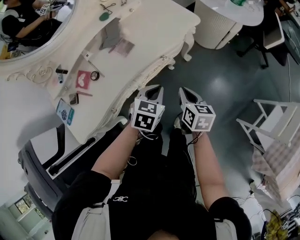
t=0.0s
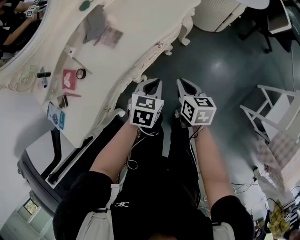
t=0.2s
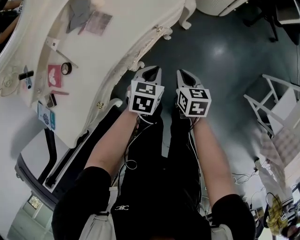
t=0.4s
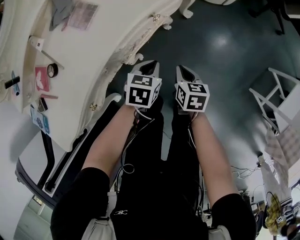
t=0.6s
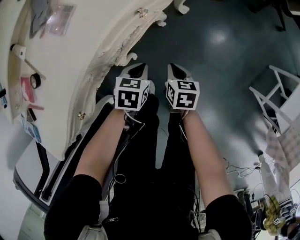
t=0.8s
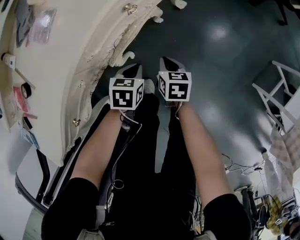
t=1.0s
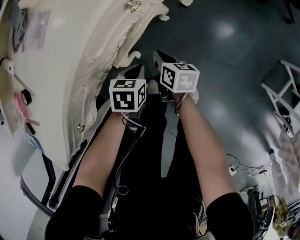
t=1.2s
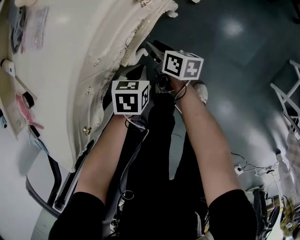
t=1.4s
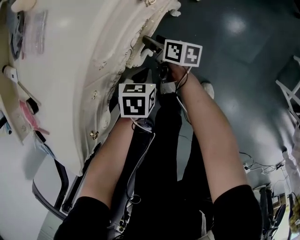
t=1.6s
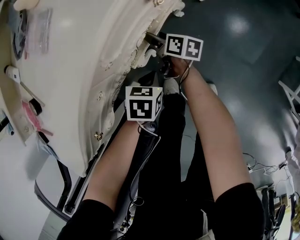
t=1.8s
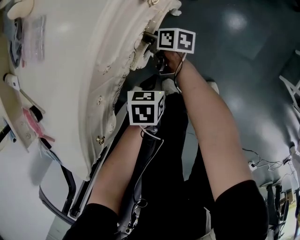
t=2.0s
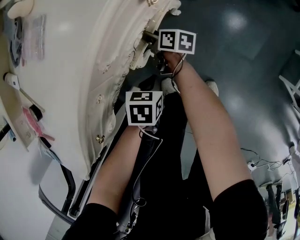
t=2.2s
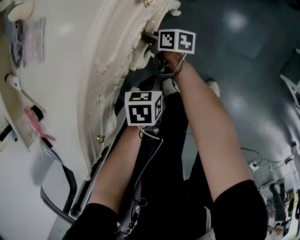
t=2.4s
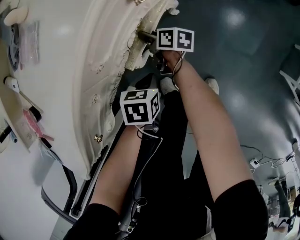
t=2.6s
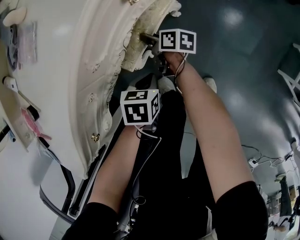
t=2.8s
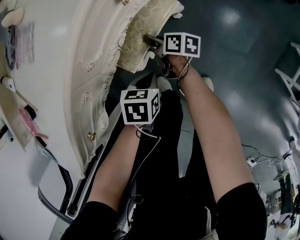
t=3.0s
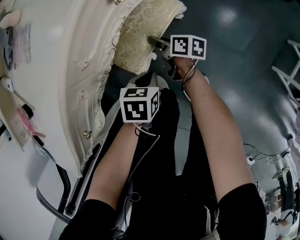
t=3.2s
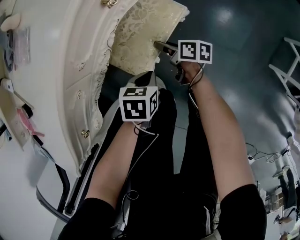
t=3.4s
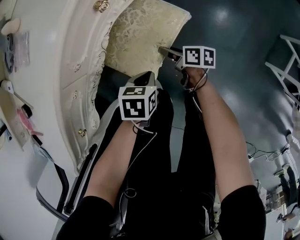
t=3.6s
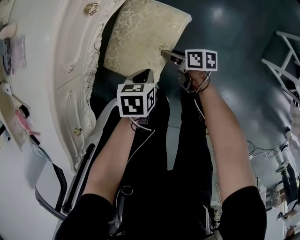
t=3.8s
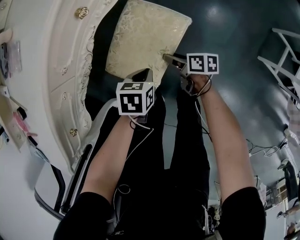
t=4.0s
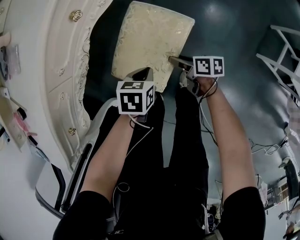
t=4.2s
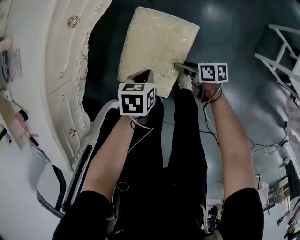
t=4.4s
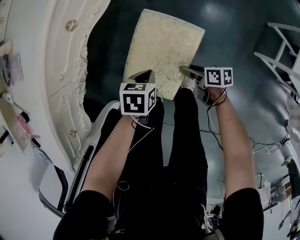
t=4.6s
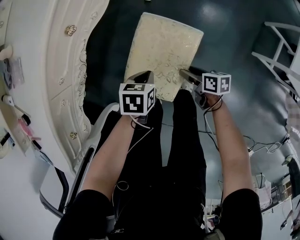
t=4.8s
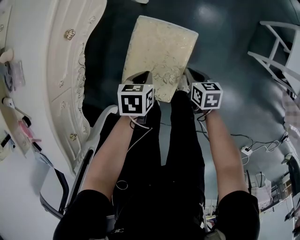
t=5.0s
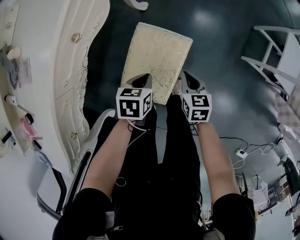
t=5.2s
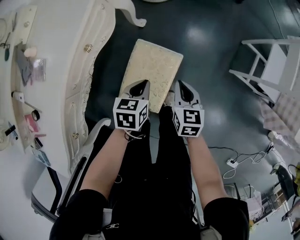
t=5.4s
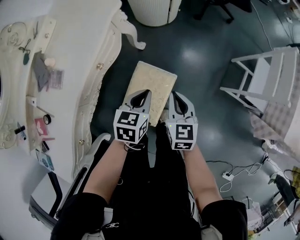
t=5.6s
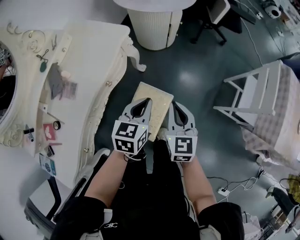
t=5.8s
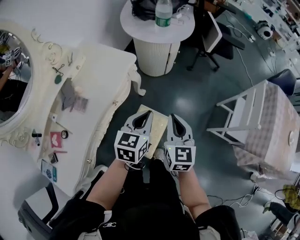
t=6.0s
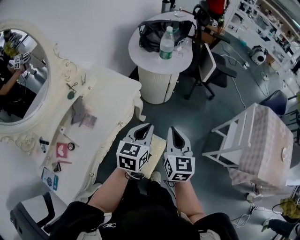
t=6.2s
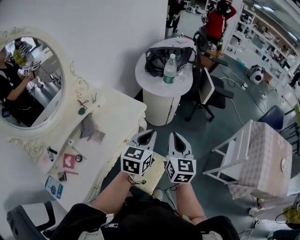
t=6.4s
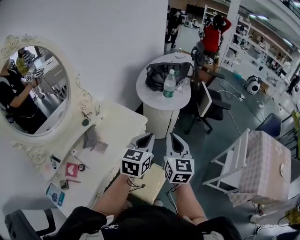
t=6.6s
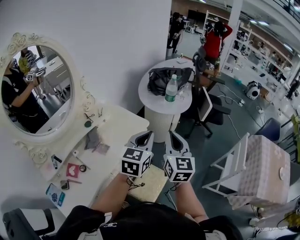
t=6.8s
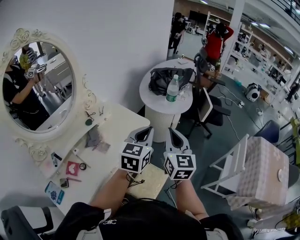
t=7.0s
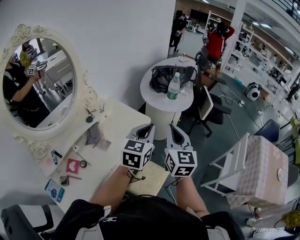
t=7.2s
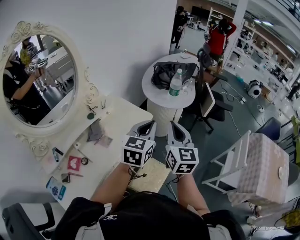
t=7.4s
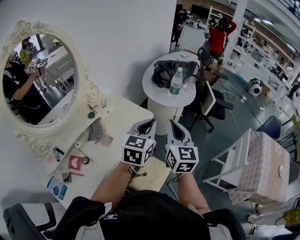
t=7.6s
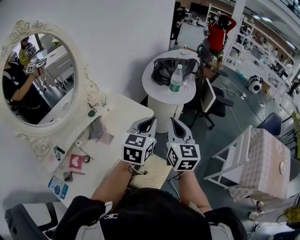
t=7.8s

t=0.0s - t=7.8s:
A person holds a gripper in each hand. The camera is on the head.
t=0.0s - t=1.6s: The left gripper travels downward by roughly 35 cm, and turns by roughly 20 degrees. Meanwhile the right gripper is displaced downward and to the left by approximately 40 cm, rotates about 40 degrees, and opens up.
t=1.6s - t=3.2s: Both grippers move to the right, some 5 cm.
t=3.2s - t=4.6s: The right gripper heads to the right and backward, covering some 30 cm, while the left gripper heads to the right, covering about 10 cm.
t=4.6s - t=6.2s: The grippers both shift upward by about 50 cm. The right gripper changes its angle by about 80 degrees, and closes, while the left gripper points its fingers some 50 degrees further upward.
t=6.2s - t=7.8s: Both grippers move upward and to the left, roughly 15 cm.

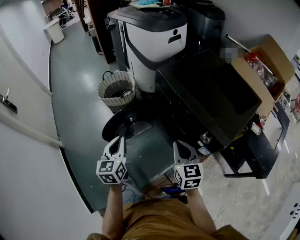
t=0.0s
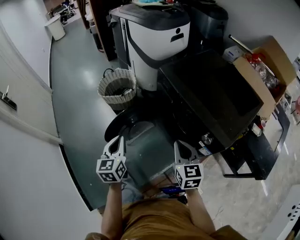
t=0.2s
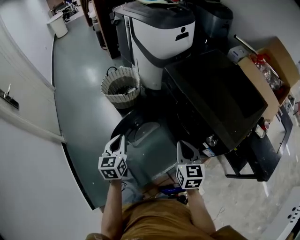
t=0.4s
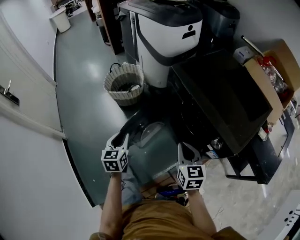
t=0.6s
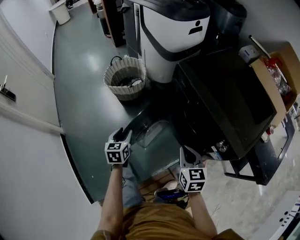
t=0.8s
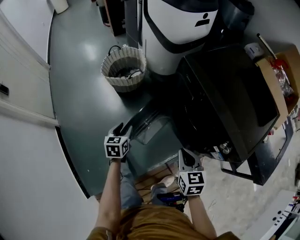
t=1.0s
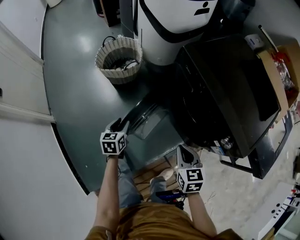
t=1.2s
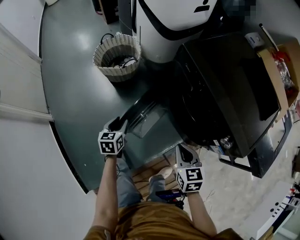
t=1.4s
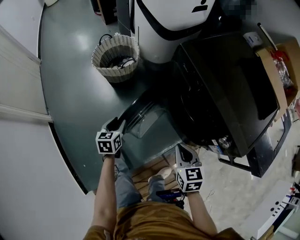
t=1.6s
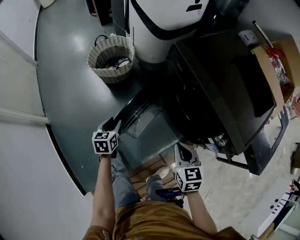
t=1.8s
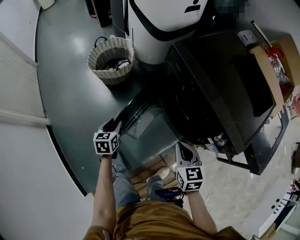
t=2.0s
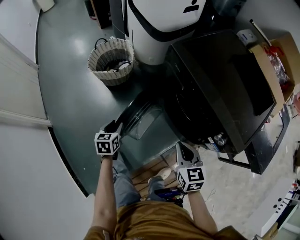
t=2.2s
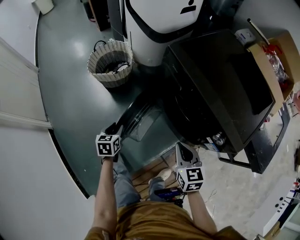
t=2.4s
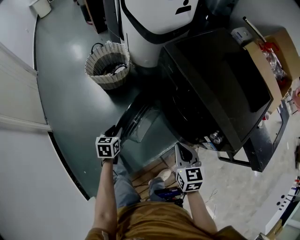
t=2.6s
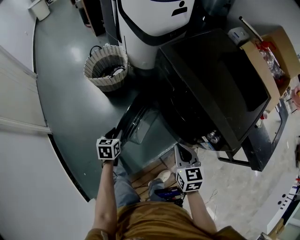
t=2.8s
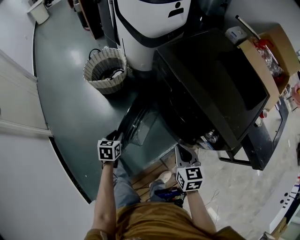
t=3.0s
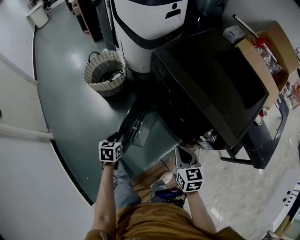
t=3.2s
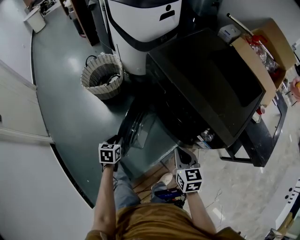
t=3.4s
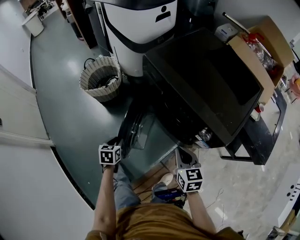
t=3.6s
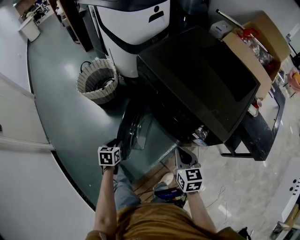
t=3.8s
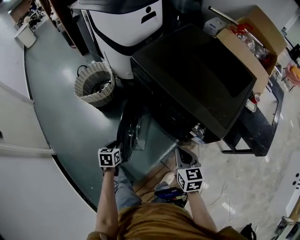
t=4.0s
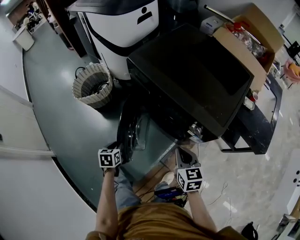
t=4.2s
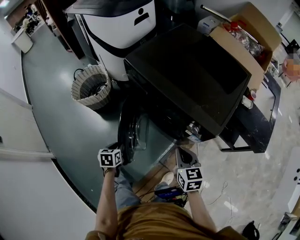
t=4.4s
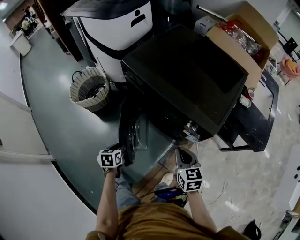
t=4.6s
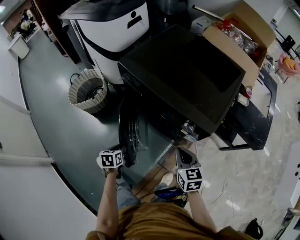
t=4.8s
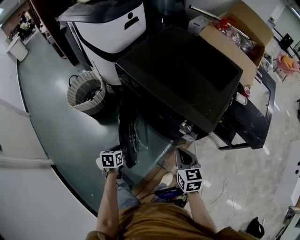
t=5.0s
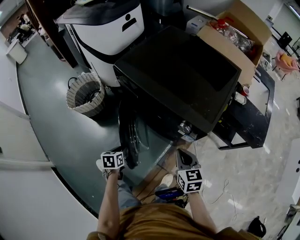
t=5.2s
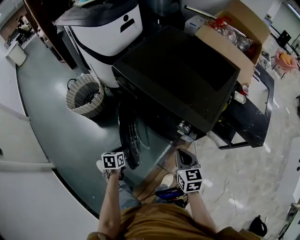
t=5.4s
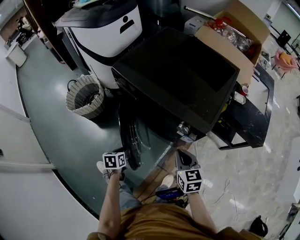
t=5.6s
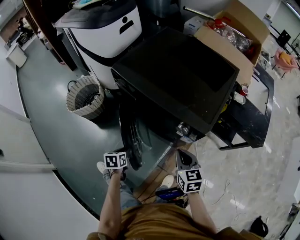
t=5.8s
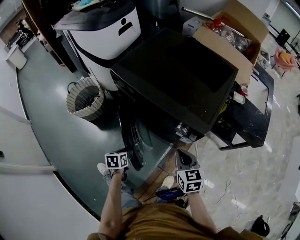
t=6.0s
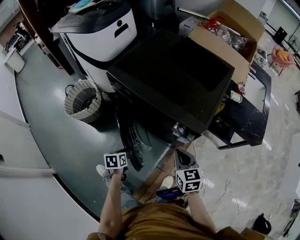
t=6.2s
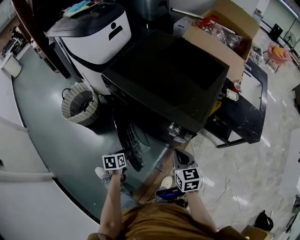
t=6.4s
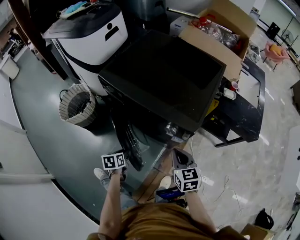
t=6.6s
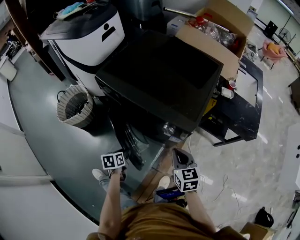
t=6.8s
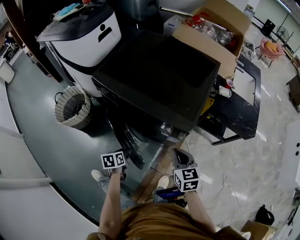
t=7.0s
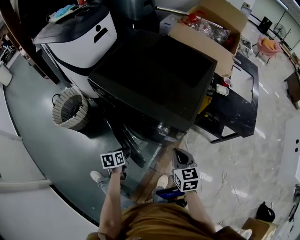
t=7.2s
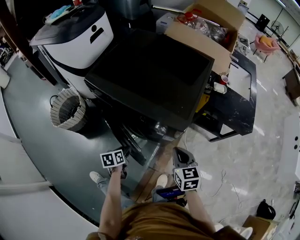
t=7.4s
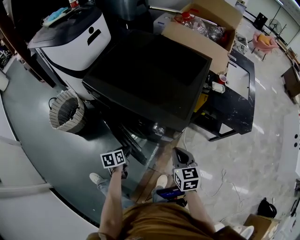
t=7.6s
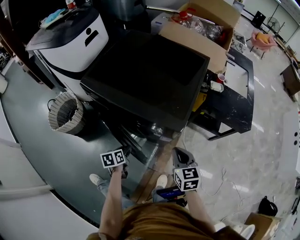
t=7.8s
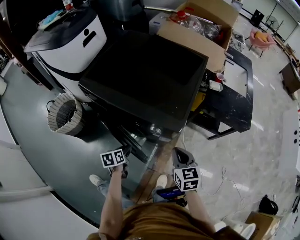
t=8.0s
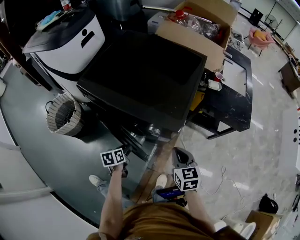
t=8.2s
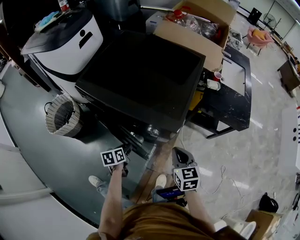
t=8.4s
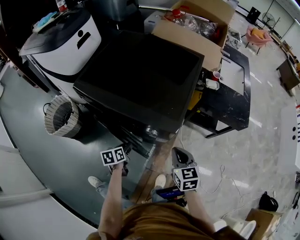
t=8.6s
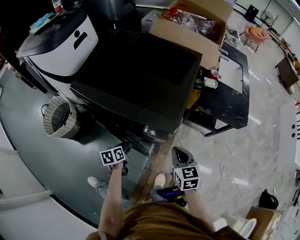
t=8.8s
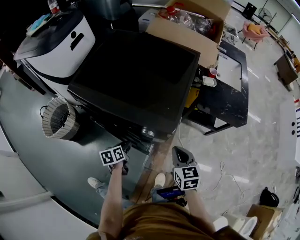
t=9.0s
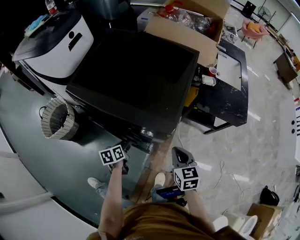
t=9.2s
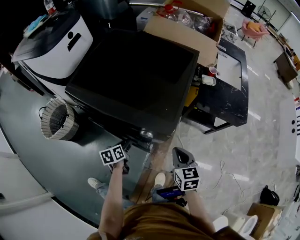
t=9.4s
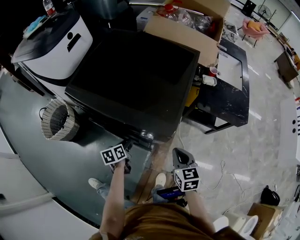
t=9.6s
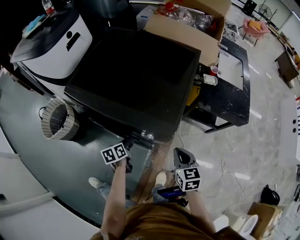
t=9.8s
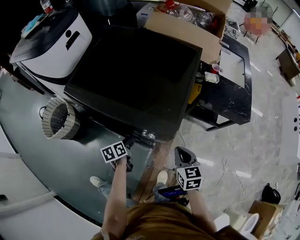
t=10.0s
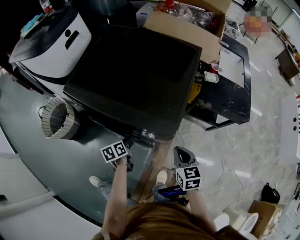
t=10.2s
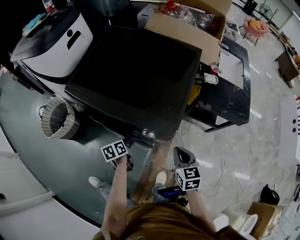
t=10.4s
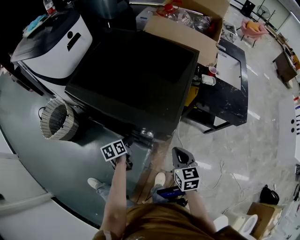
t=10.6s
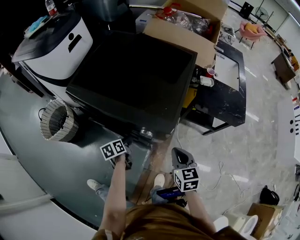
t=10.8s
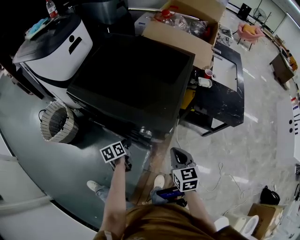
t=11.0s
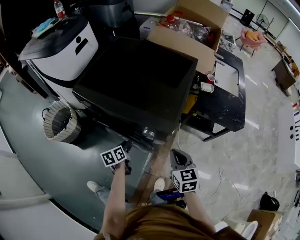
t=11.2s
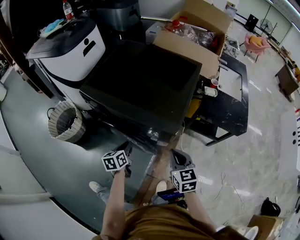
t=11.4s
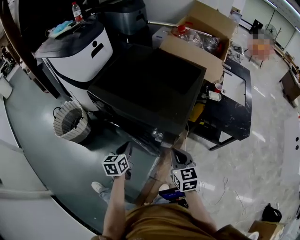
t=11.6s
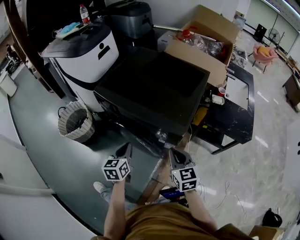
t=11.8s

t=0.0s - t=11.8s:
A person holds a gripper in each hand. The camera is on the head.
t=0.0s - t=1.4s: The right gripper travels downward and to the left by approximately 15 cm; the left gripper moves downward and forward, some 25 cm, turns by roughly 20 degrees, and opens its fingers.
t=1.4s - t=3.0s: Both grippers move to the right, approximately 5 cm.
t=3.0s - t=4.4s: The two grippers go approximately 10 cm to the right.
t=4.4s - t=6.0s: The left gripper shifts approximately 10 cm to the right.
t=6.0s - t=7.4s: The left gripper shifts approximately 10 cm to the right and forward. The right gripper moves to the right, some 5 cm.
t=7.4s - t=8.8s: The left gripper heads forward, covering roughly 5 cm.
t=8.8s - t=10.4s: The grippers make only small movements.
t=10.4s - t=11.8s: The right gripper shifts roughly 10 cm upward and to the left, while the left gripper heads upward and backward, covering some 20 cm, rotates about 40 degrees, and closes its fingers.

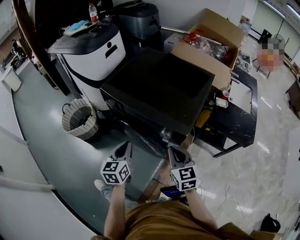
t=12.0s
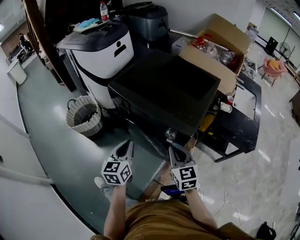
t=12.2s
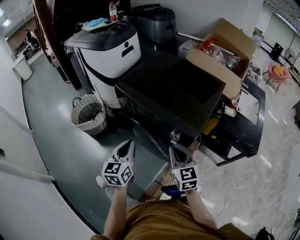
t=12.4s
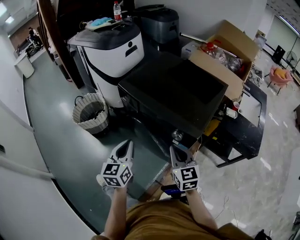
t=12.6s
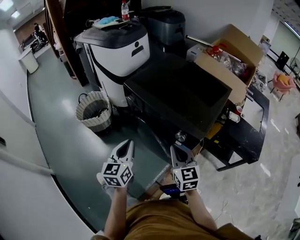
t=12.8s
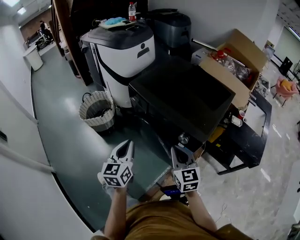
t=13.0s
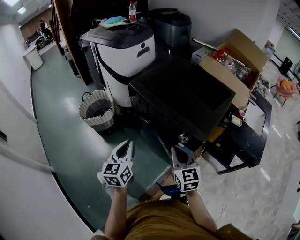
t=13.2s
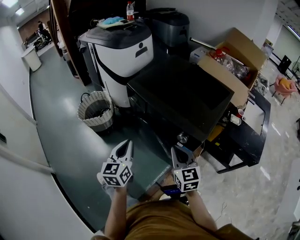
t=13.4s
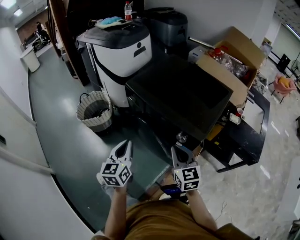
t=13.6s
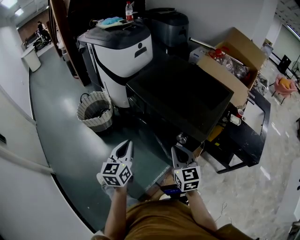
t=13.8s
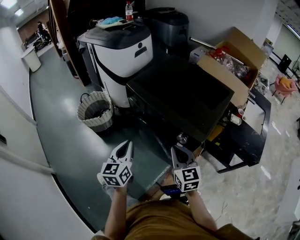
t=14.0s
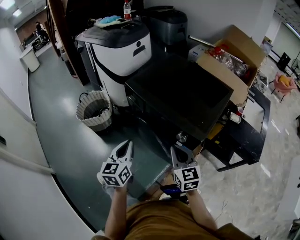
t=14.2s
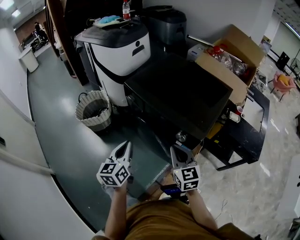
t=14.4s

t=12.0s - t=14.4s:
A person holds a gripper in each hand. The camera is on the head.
t=12.0s - t=13.2s: The left gripper heads to the left and upward, covering roughly 10 cm, while the right gripper moves to the left, some 10 cm.
t=13.2s - t=14.4s: The grippers stay close to where they were, moving slightly.

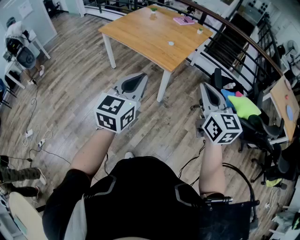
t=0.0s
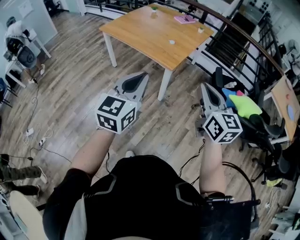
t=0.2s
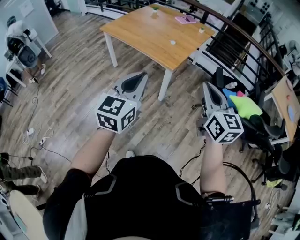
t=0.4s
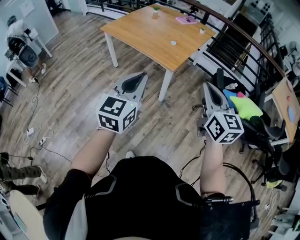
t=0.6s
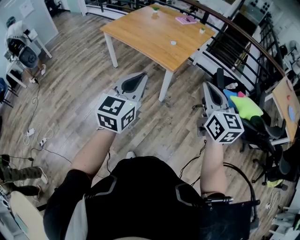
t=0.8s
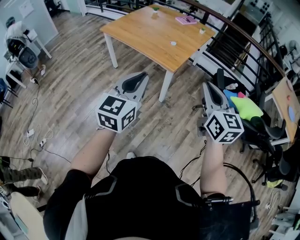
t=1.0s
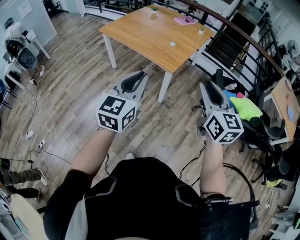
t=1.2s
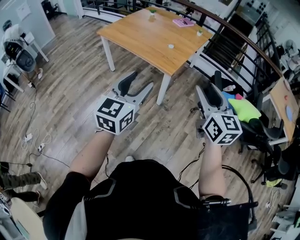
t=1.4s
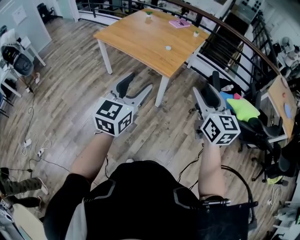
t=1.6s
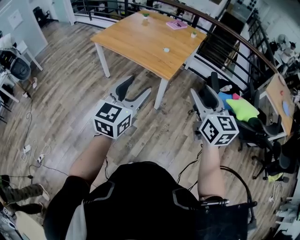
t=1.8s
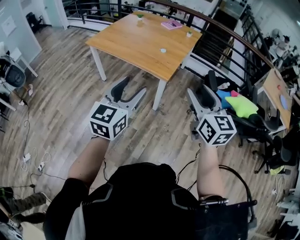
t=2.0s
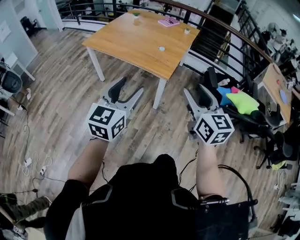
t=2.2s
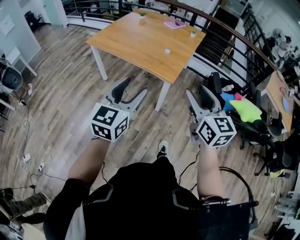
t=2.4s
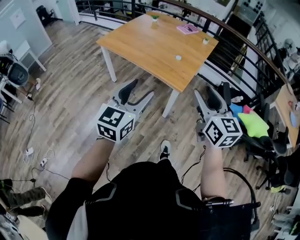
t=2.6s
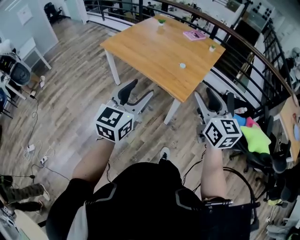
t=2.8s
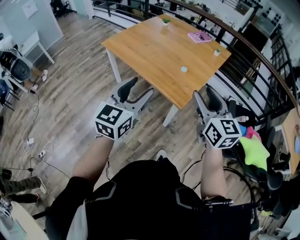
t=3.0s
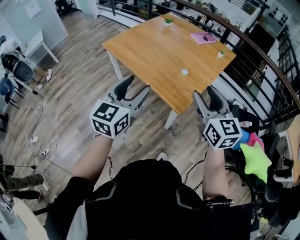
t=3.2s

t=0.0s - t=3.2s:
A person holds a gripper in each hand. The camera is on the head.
t=0.0s - t=1.6s: The right gripper opens, while the left gripper opens its fingers.
t=1.6s - t=3.2s: The two grippers go approximately 30 cm forward.
